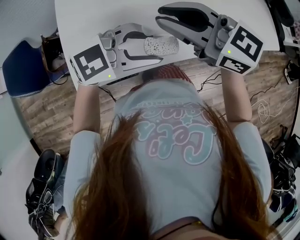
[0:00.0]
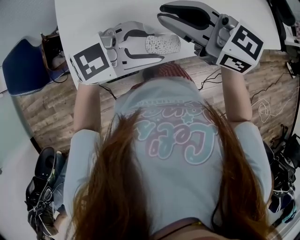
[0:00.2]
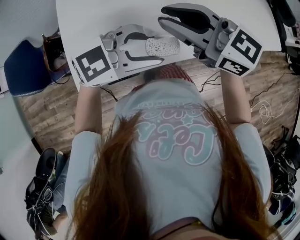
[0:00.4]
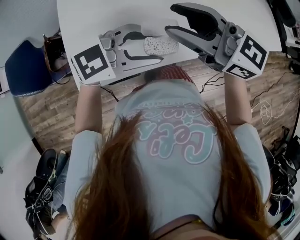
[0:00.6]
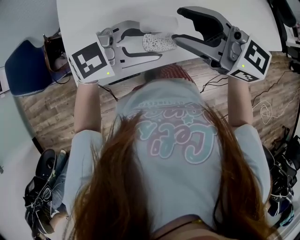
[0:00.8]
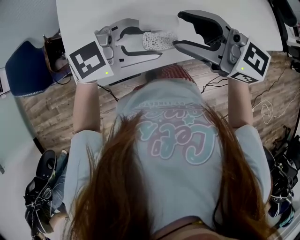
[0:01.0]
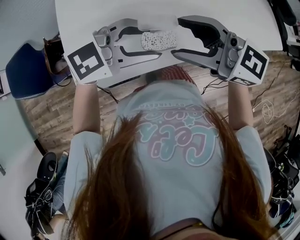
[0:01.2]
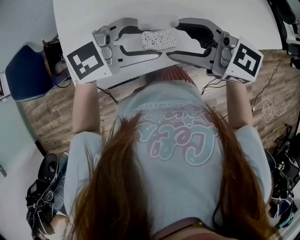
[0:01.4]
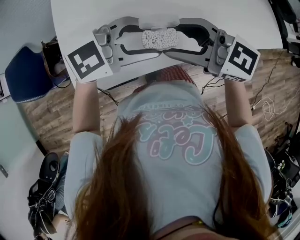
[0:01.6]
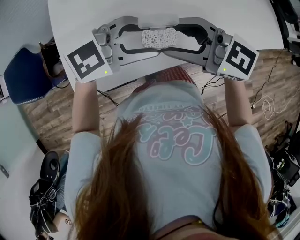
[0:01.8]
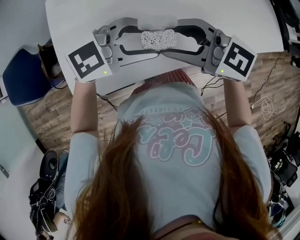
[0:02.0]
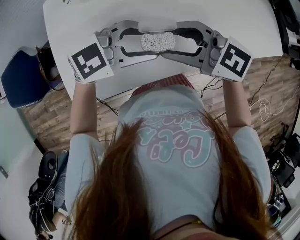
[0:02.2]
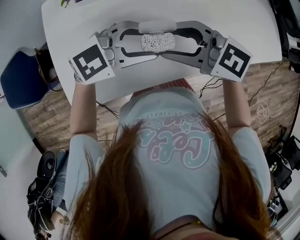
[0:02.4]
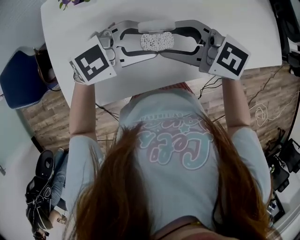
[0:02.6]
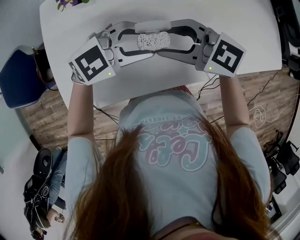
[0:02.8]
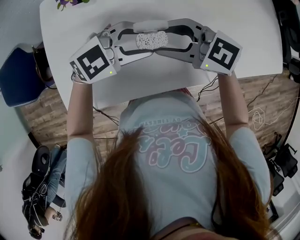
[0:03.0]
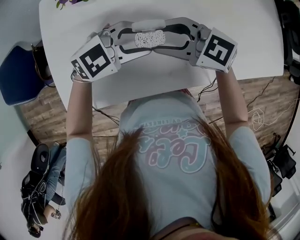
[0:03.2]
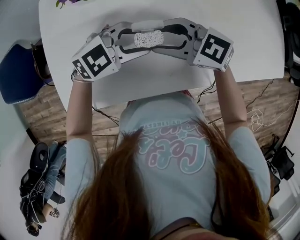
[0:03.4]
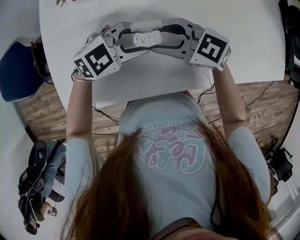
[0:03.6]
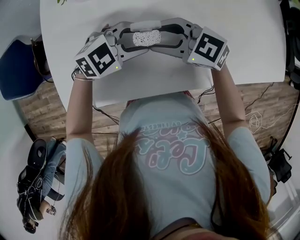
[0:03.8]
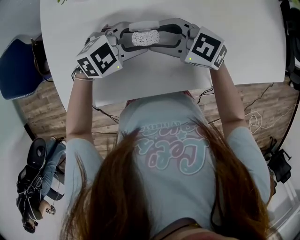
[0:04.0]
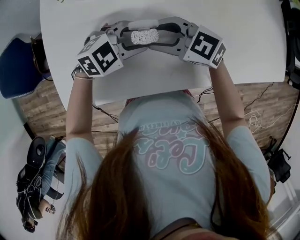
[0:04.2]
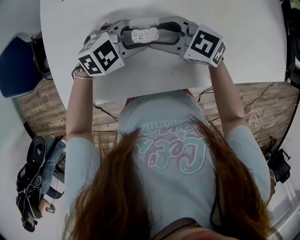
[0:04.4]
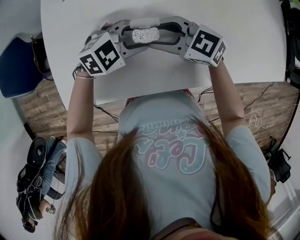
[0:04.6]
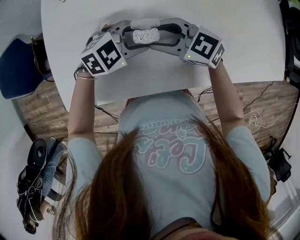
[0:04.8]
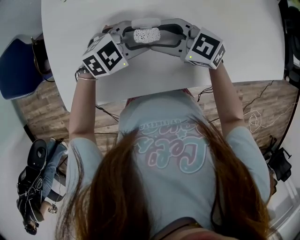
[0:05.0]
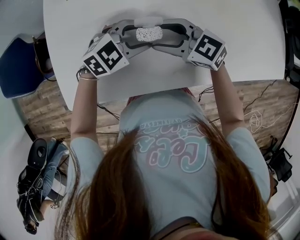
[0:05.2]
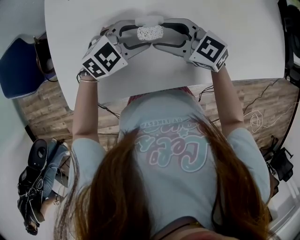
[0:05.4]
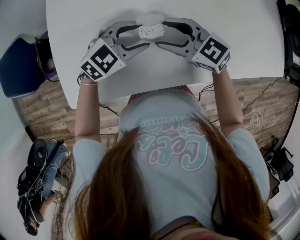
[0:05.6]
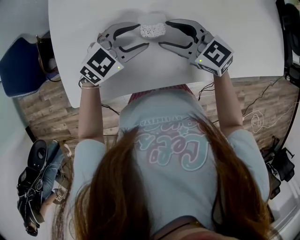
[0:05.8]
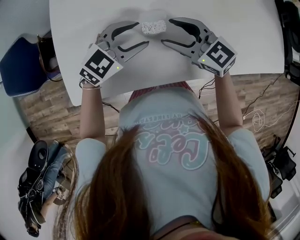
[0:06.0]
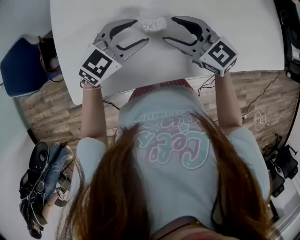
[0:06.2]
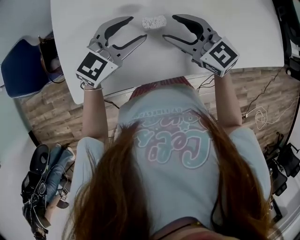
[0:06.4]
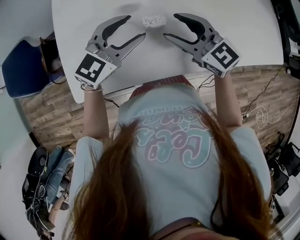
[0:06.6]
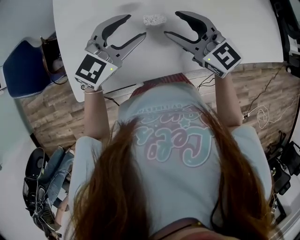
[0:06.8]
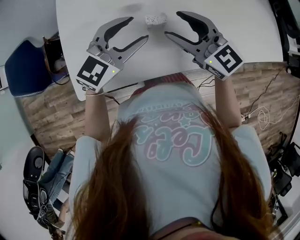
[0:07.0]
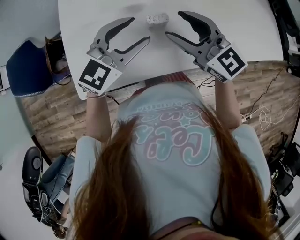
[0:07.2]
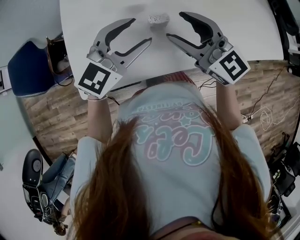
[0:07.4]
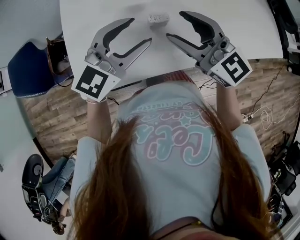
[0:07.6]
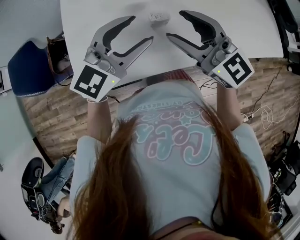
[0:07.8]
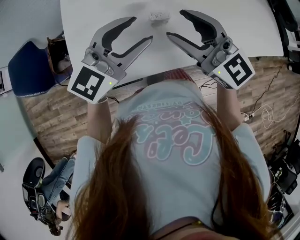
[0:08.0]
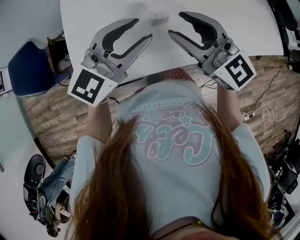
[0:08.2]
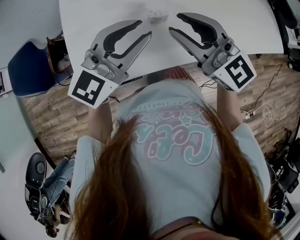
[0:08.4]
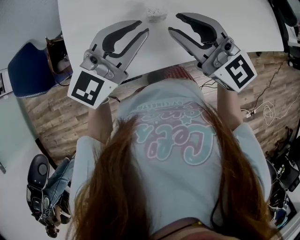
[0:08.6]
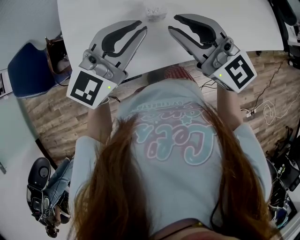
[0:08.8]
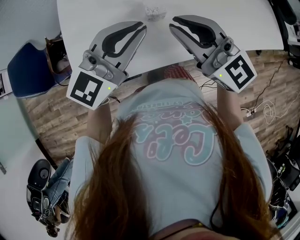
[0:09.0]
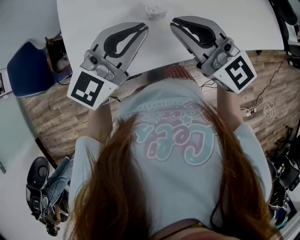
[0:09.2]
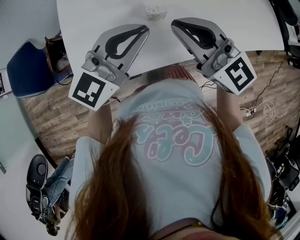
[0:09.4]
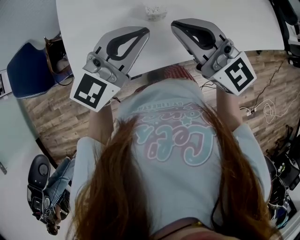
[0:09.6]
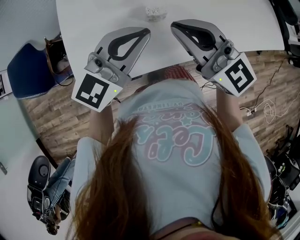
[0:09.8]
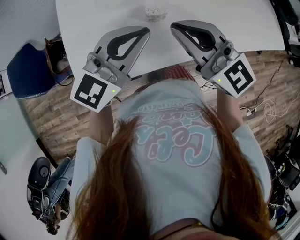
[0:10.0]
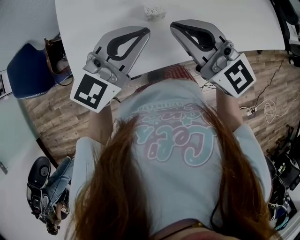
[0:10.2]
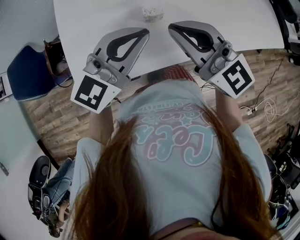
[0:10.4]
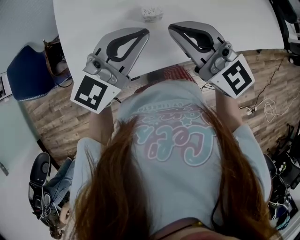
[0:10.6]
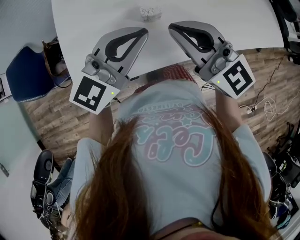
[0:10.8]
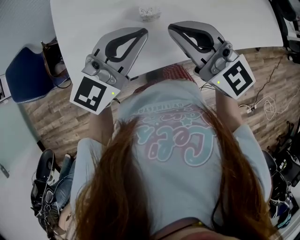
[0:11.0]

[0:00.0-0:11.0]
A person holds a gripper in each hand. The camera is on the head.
0:00.0 to 0:01.6: The right gripper changes place by some 5 cm, and opens.
0:01.6 to 0:03.2: The right gripper ends up approximately 15 cm from where it was, while the left gripper changes place by some 15 cm.
0:03.2 to 0:04.8: Both grippers move downward, approximately 5 cm.
0:04.8 to 0:06.2: The right gripper shifts by about 5 cm. The left gripper is displaced upward by roughly 5 cm, and turns by some 20 degrees.
0:06.2 to 0:07.8: Both grippers move upward and backward, about 15 cm. The right gripper swivels about 20 degrees.
0:07.8 to 0:09.4: The right gripper closes. Meanwhile the left gripper closes.
0:09.4 to 0:11.0: The two grippers keep their place.

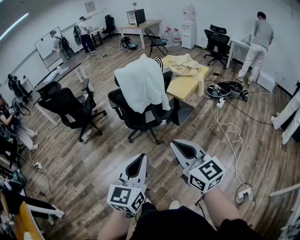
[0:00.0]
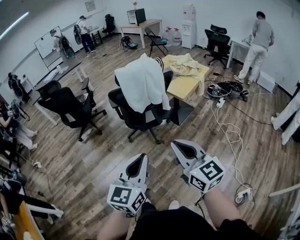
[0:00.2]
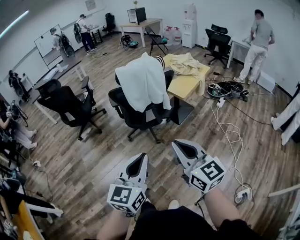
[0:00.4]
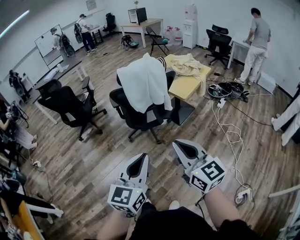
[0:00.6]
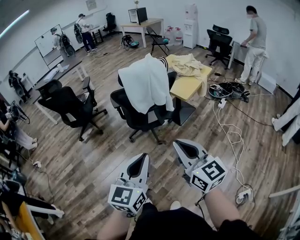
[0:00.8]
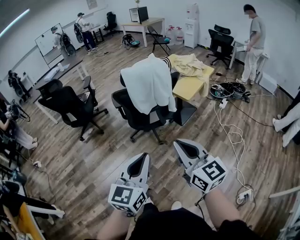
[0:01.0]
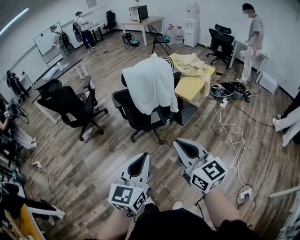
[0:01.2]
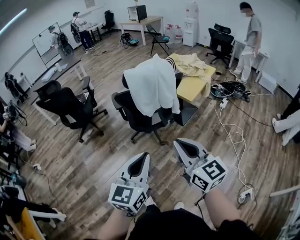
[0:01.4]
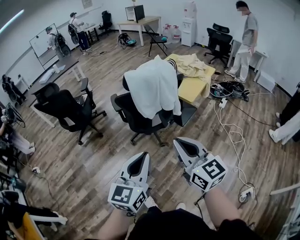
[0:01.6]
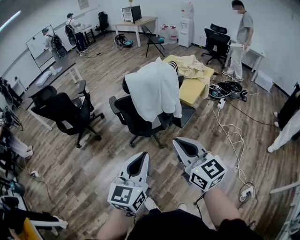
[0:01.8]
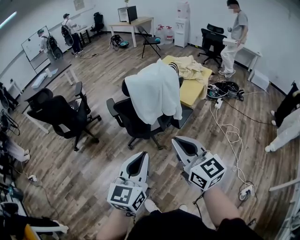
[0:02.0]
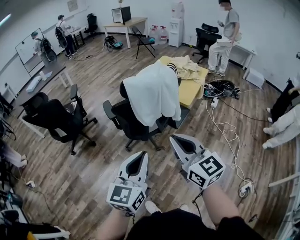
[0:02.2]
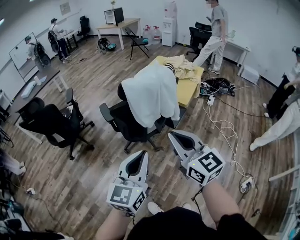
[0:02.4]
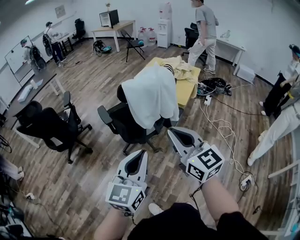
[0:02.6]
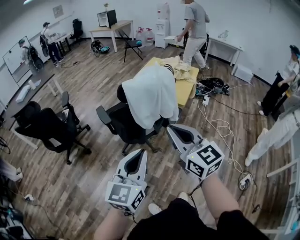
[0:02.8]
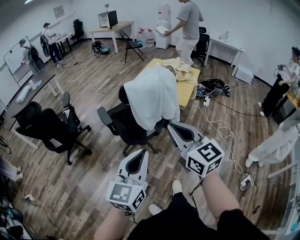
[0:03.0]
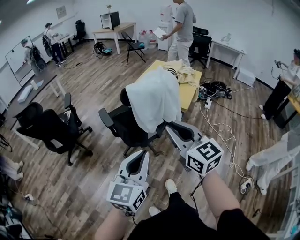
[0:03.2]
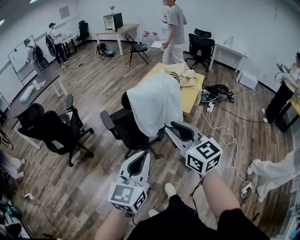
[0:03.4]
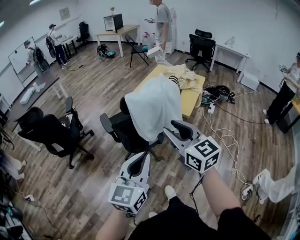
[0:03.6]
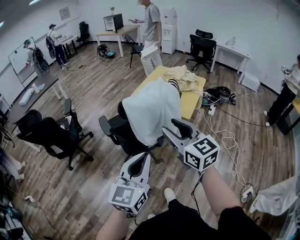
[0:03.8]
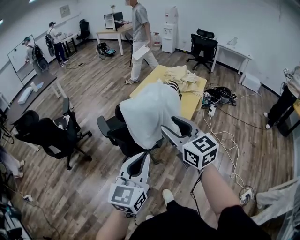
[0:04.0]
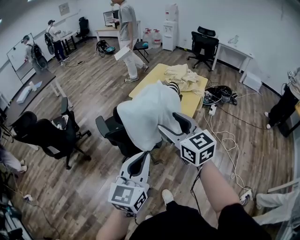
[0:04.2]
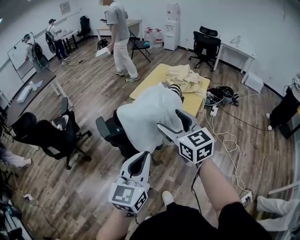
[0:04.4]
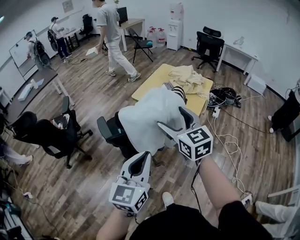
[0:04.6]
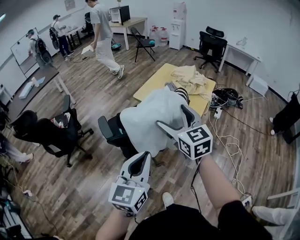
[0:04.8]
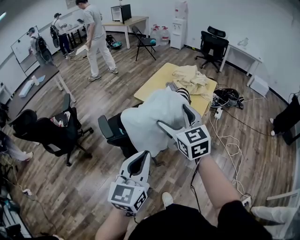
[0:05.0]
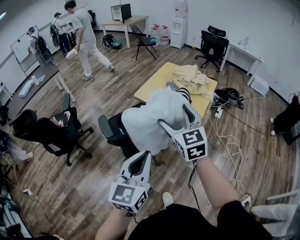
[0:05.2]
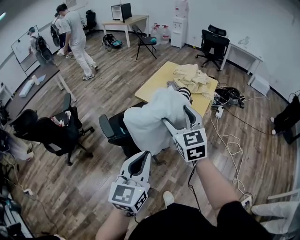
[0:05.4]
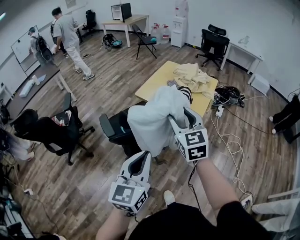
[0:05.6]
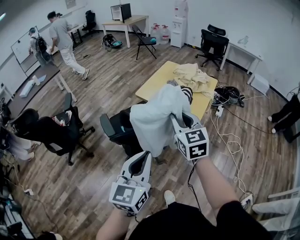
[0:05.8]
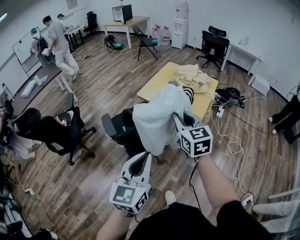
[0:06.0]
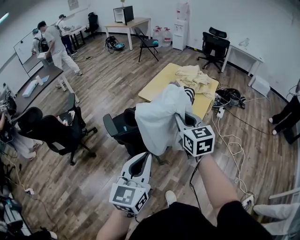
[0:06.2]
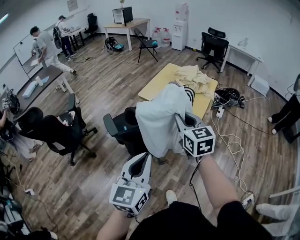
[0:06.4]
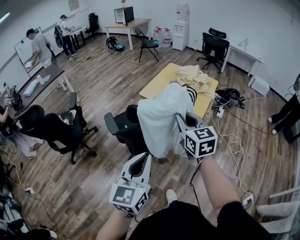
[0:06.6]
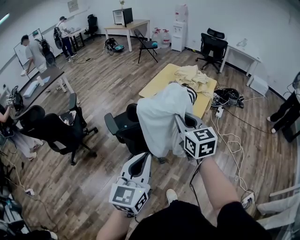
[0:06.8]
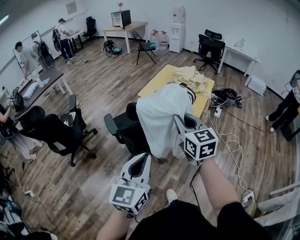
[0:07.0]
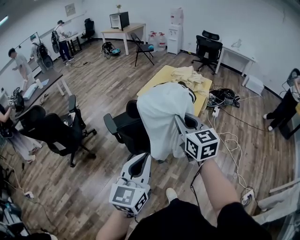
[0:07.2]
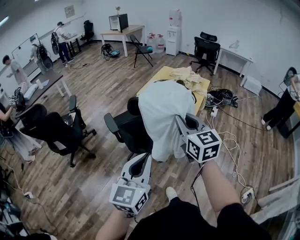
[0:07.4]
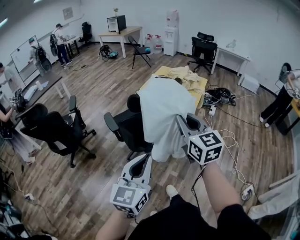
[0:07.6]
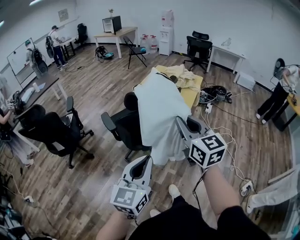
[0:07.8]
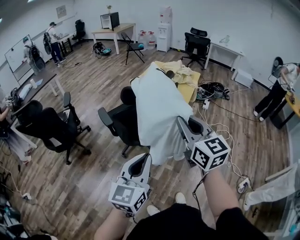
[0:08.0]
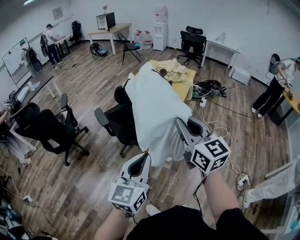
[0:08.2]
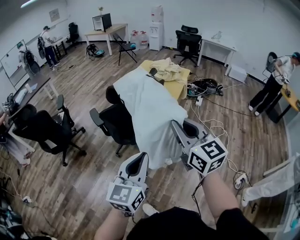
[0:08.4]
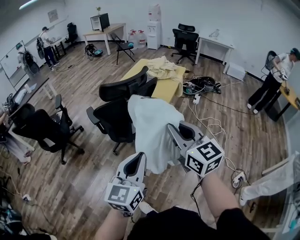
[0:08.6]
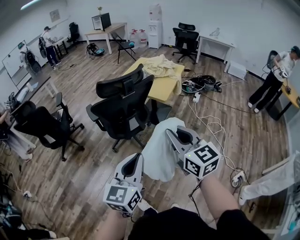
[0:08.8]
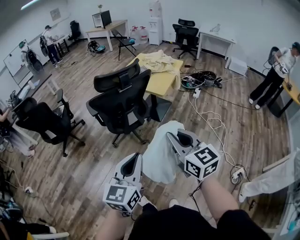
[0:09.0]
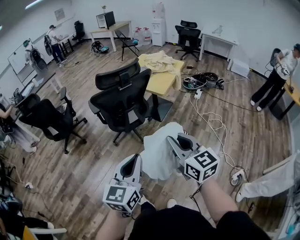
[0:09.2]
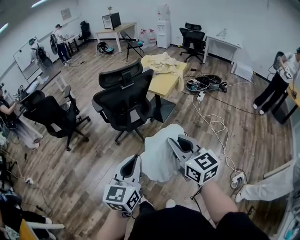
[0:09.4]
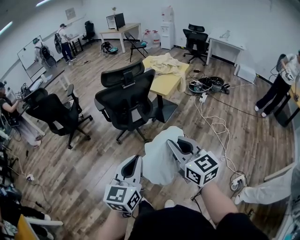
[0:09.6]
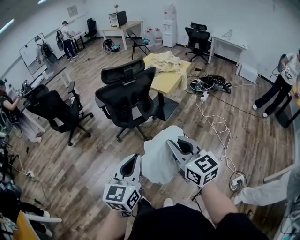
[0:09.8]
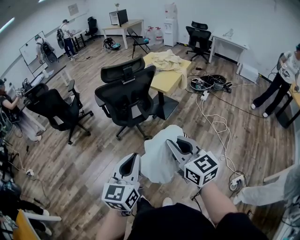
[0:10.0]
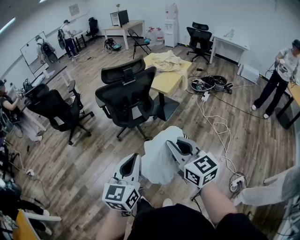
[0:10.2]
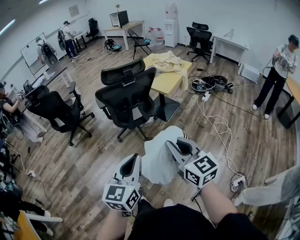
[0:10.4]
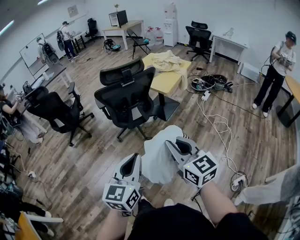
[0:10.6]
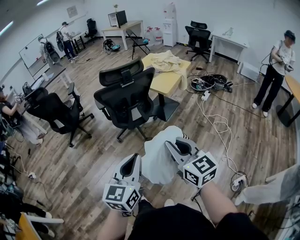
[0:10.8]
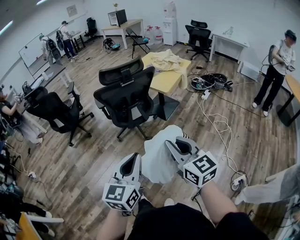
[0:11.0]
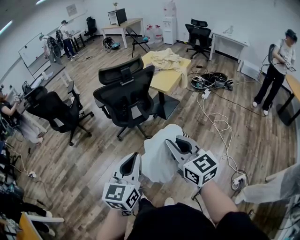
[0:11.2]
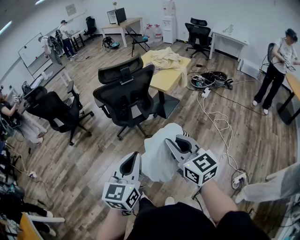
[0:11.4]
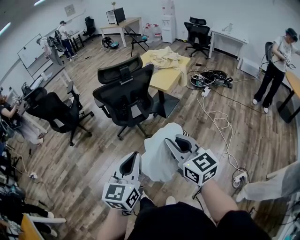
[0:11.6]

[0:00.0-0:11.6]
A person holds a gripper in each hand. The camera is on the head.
0:00.0 to 0:01.4: Both grippers travel together forward and to the left, approximately 10 cm.
0:01.4 to 0:02.8: Both grippers travel together forward and to the left, about 15 cm.
0:02.8 to 0:04.4: Both grippers move forward, approximately 20 cm. The right gripper opens up.
0:04.4 to 0:05.8: The right gripper moves forward, some 5 cm, and closes.
0:05.8 to 0:07.2: The grippers both shift backward by roughly 10 cm.
0:07.2 to 0:08.8: Both grippers move backward and to the right, roughly 30 cm.
0:08.8 to 0:10.2: The two grippers go roughly 15 cm backward and to the right.
0:10.2 to 0:11.6: There are only small adjustments of the grippers.

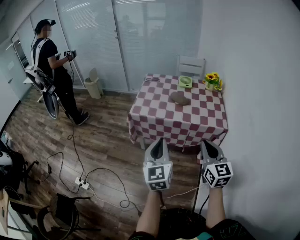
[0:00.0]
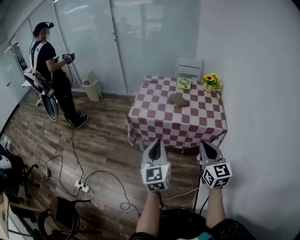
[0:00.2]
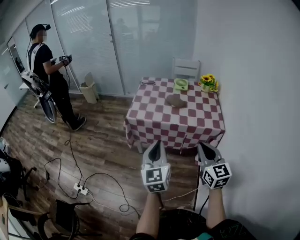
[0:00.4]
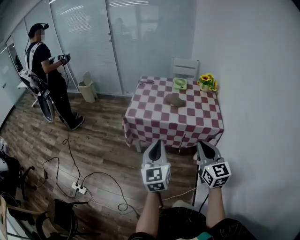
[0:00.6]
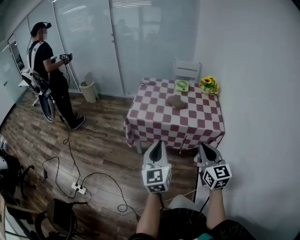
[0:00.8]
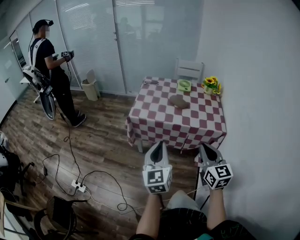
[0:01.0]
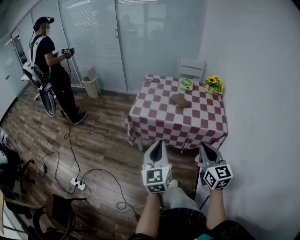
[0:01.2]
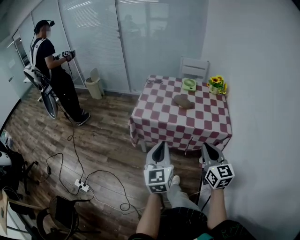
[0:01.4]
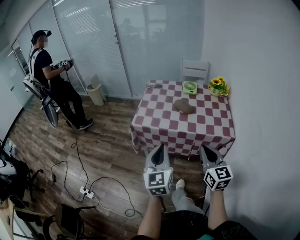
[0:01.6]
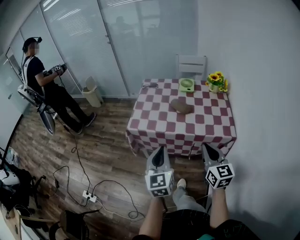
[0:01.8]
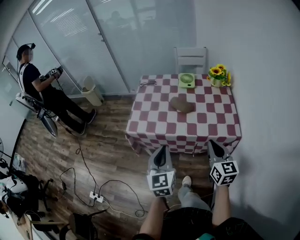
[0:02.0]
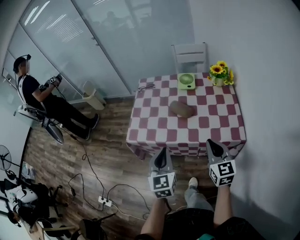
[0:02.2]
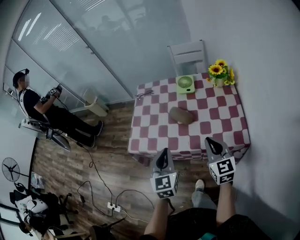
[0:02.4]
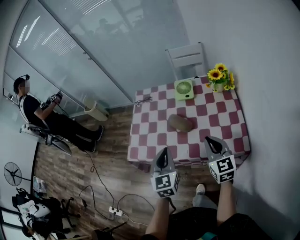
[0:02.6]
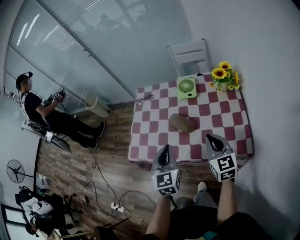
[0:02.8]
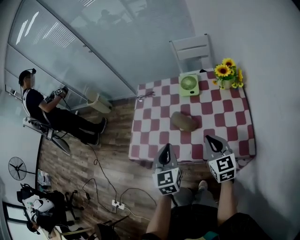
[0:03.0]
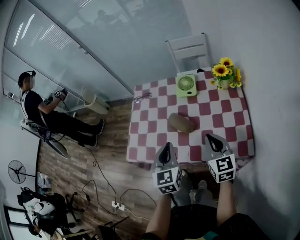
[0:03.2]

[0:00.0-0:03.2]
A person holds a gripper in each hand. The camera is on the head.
0:00.0 to 0:01.6: The grippers both shift forward by roughly 5 cm.
0:01.6 to 0:03.2: Both grippers travel together forward and to the right, approximately 35 cm.
